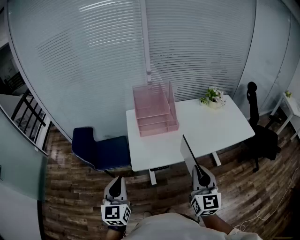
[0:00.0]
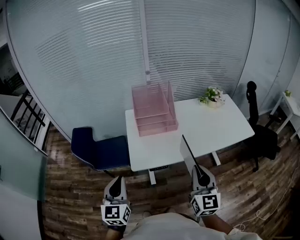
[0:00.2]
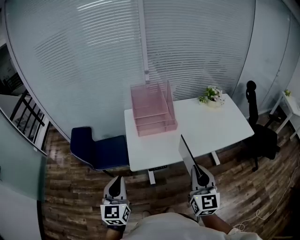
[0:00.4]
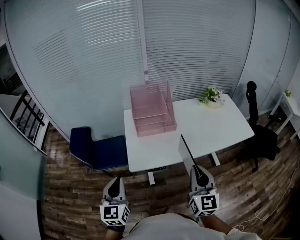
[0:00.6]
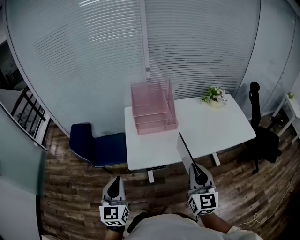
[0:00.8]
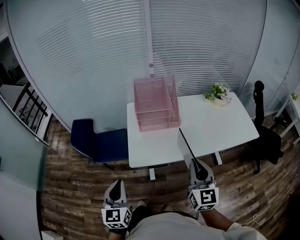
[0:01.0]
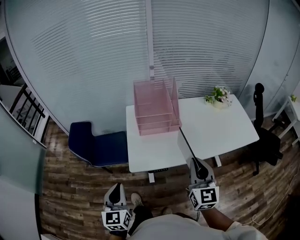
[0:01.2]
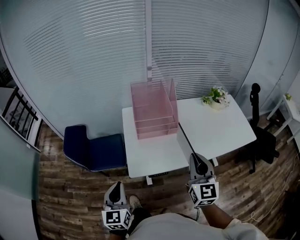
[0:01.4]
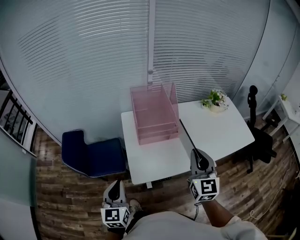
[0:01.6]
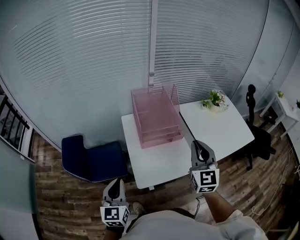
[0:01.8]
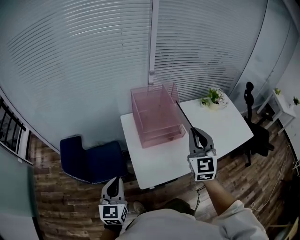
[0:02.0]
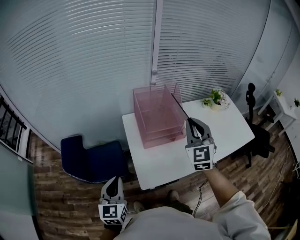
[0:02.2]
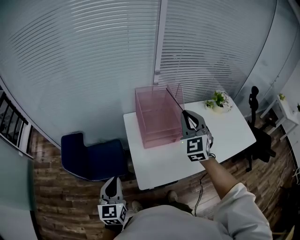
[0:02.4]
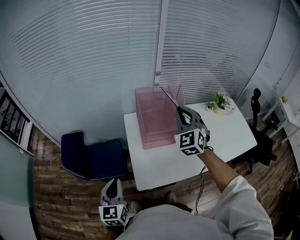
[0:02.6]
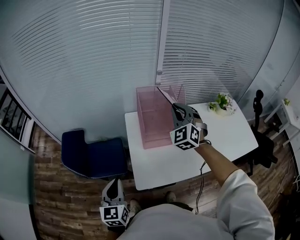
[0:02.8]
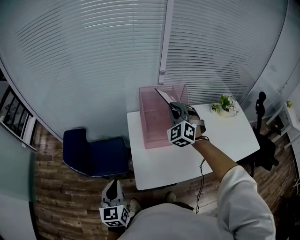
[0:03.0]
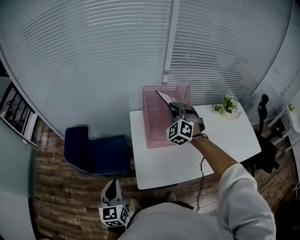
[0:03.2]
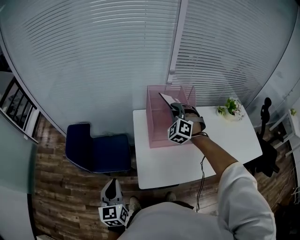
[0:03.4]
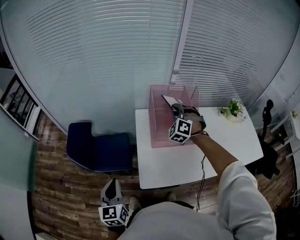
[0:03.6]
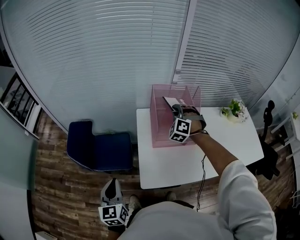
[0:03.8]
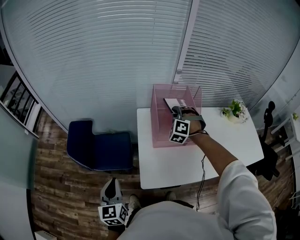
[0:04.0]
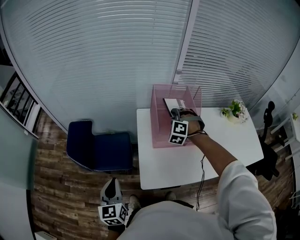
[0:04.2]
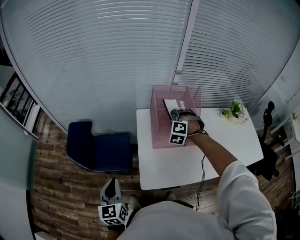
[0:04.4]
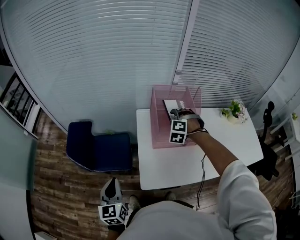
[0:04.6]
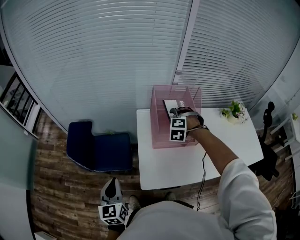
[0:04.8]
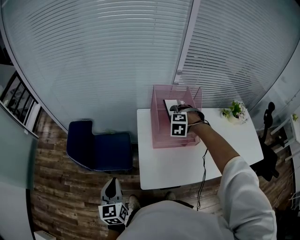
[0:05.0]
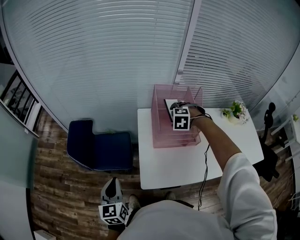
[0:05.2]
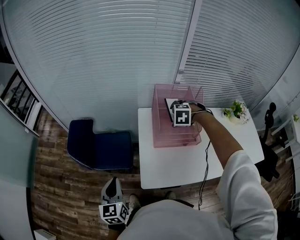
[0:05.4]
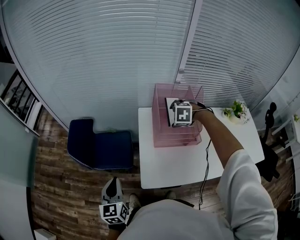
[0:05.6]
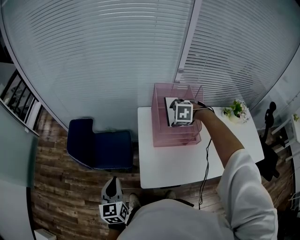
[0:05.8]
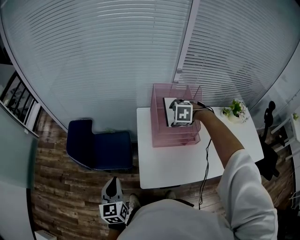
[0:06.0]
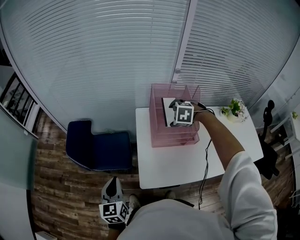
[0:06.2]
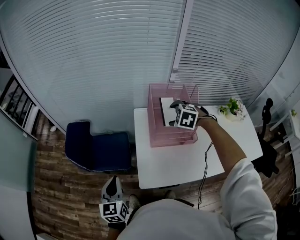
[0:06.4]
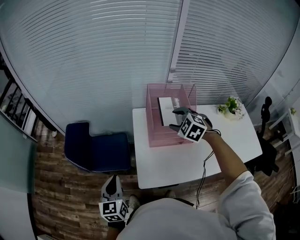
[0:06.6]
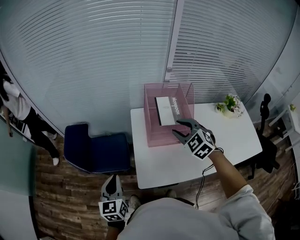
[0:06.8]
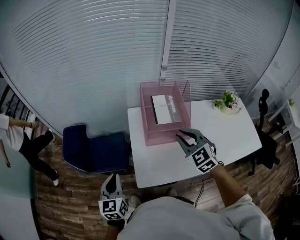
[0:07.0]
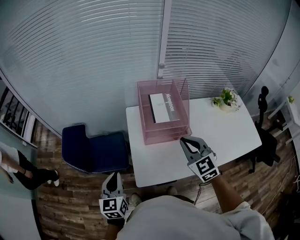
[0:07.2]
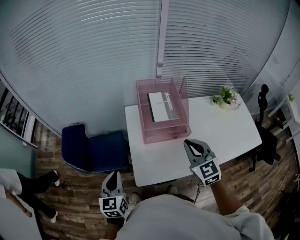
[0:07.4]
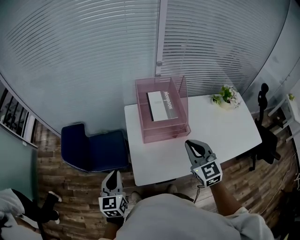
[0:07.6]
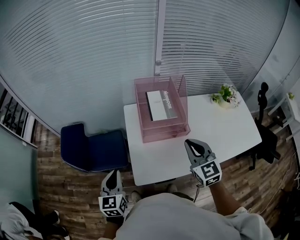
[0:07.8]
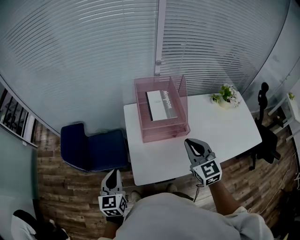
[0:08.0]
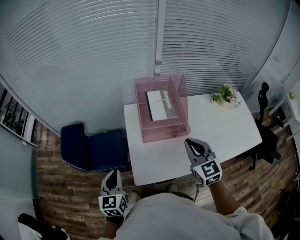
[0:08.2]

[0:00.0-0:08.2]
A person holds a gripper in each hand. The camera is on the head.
0:00.0 to 0:01.6: The left gripper travels forward and downward by roughly 15 cm; the right gripper is displaced forward by about 20 cm.
0:01.6 to 0:03.2: The right gripper goes about 30 cm forward and to the left, and rolls counterclockwise, seen from behind, by some 60 degrees, while the left gripper shifts roughly 5 cm to the left.
0:03.2 to 0:05.0: The right gripper goes roughly 15 cm downward, points its fingers about 40 degrees further downward, and opens.
0:05.0 to 0:06.6: The right gripper is displaced upward by about 10 cm, and rotates about 30 degrees.
0:06.6 to 0:08.2: The right gripper is displaced backward and to the right by about 15 cm, tilts its fingers roughly 30 degrees upward, and closes. Meanwhile the left gripper is displaced to the right by about 5 cm.

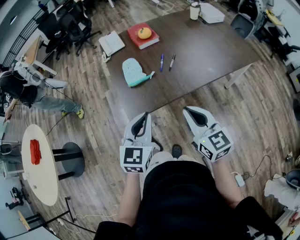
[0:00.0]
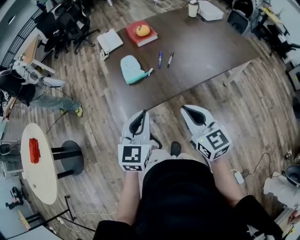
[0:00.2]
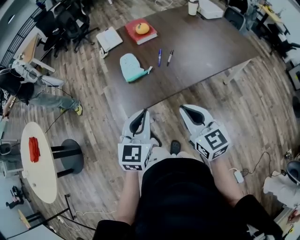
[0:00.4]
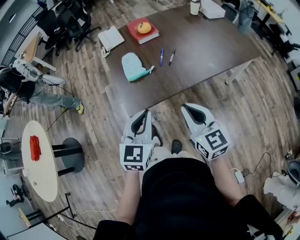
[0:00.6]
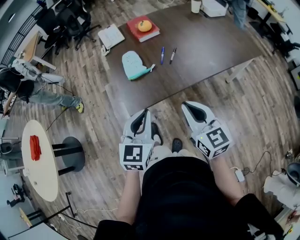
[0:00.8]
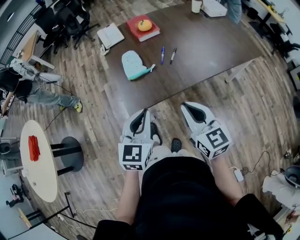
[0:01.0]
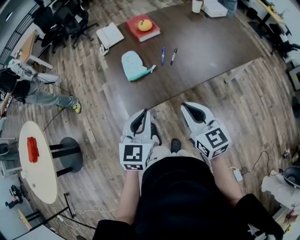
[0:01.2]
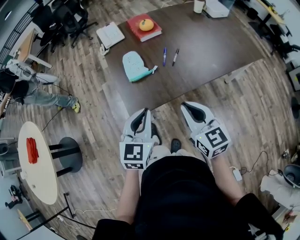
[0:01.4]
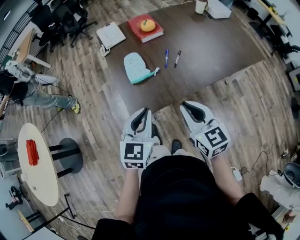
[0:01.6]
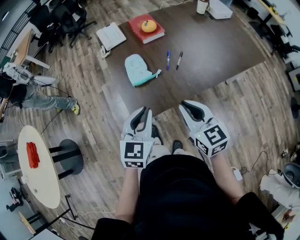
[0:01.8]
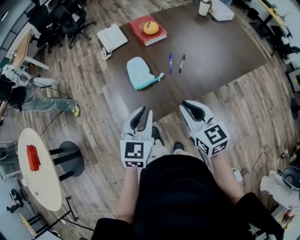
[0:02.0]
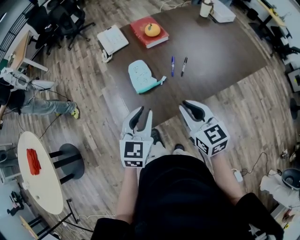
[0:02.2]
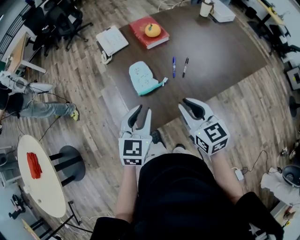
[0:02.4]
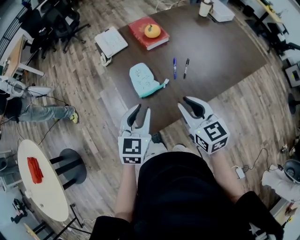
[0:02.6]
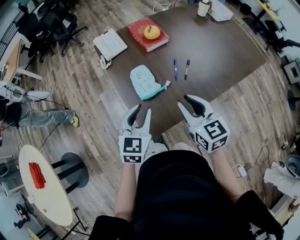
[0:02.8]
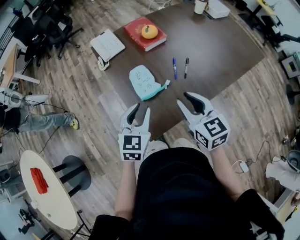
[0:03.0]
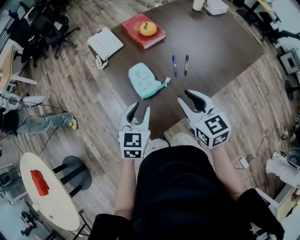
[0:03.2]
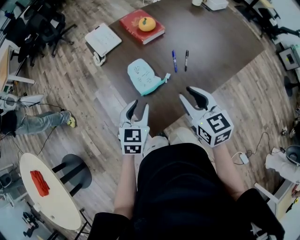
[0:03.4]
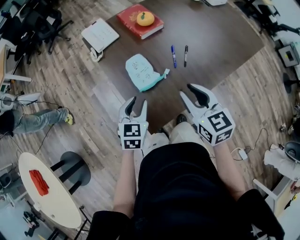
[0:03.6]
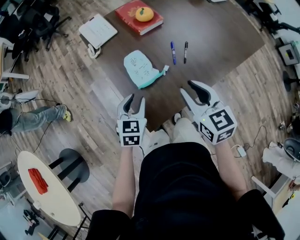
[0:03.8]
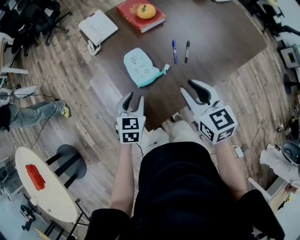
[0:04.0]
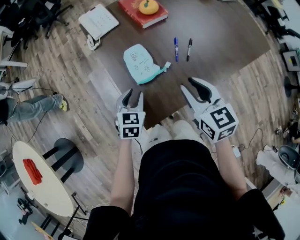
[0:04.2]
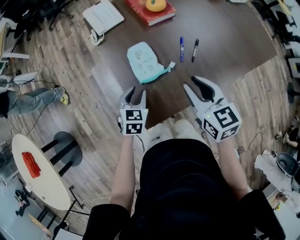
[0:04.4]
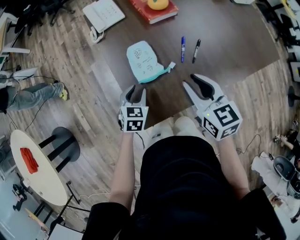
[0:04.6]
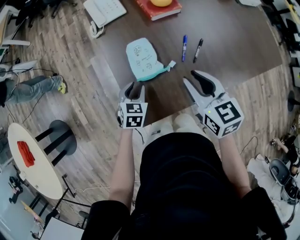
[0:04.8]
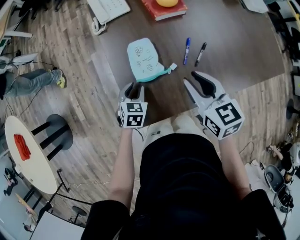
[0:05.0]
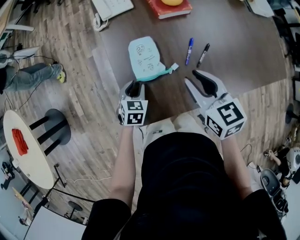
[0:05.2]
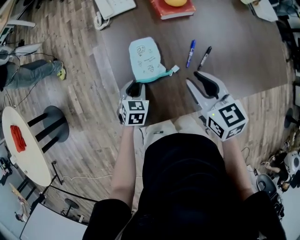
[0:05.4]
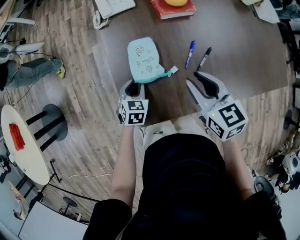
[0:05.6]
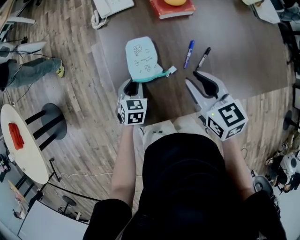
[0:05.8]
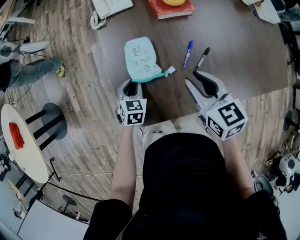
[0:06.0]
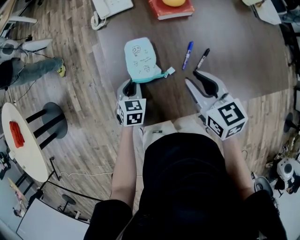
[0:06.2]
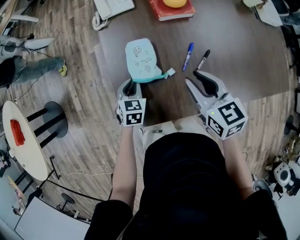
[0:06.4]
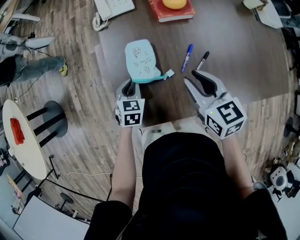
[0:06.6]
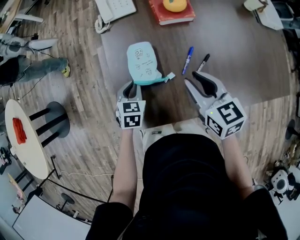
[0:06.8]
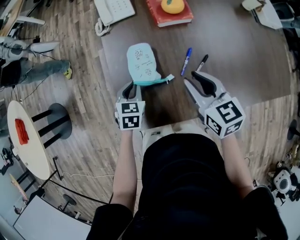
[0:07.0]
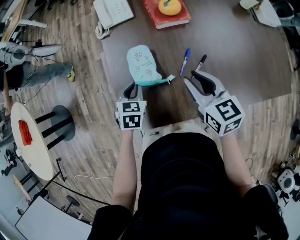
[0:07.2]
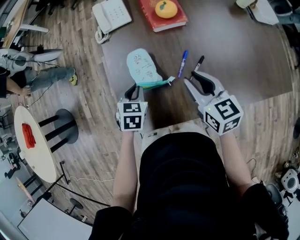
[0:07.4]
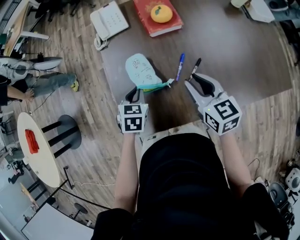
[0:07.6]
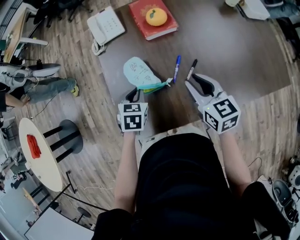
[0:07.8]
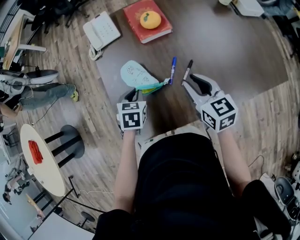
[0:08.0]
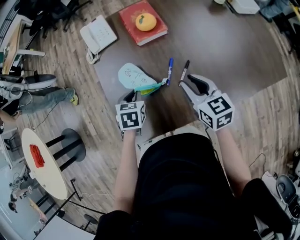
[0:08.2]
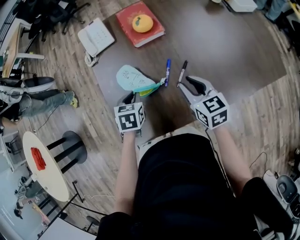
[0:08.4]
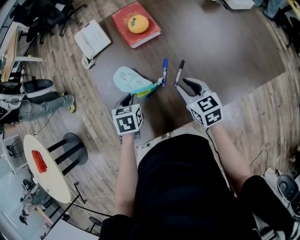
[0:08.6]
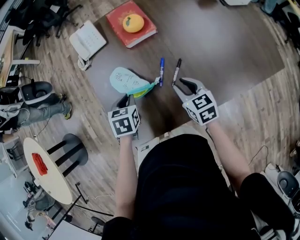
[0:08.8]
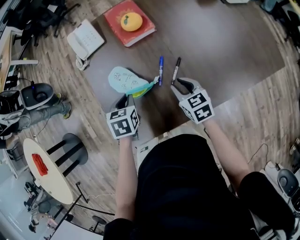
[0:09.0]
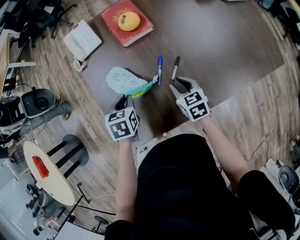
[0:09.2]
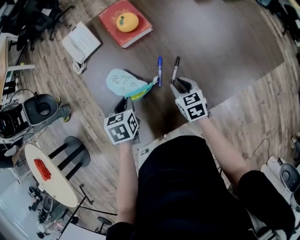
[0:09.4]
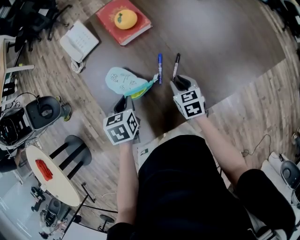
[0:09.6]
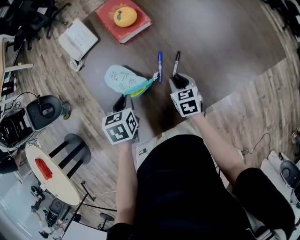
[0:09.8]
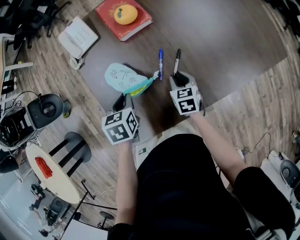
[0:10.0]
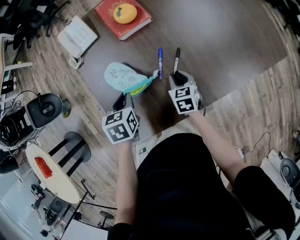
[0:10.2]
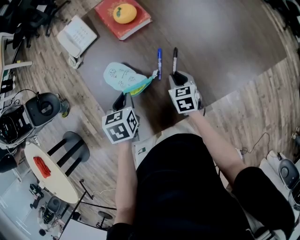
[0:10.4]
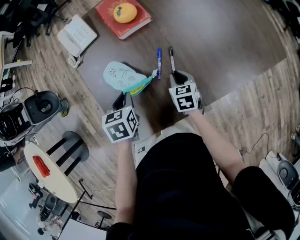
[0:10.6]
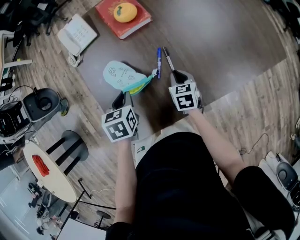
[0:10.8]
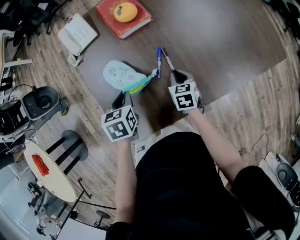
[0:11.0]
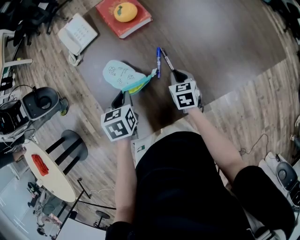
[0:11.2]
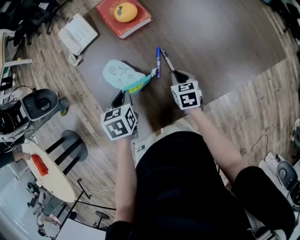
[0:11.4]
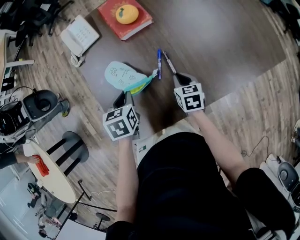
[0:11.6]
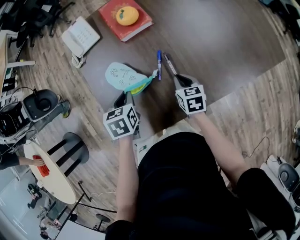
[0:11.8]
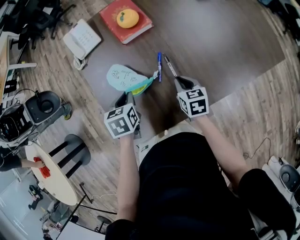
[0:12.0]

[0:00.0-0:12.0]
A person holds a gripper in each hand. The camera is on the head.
0:00.0 to 0:01.6: The two grippers go roughly 5 cm forward.
0:01.6 to 0:03.0: The two grippers go about 15 cm forward and to the left. The left gripper opens up; the right gripper opens up.
0:03.0 to 0:04.4: The left gripper goes approximately 15 cm downward, while the right gripper changes place by roughly 5 cm.
0:04.4 to 0:06.0: The left gripper is displaced downward by about 10 cm, while the right gripper heads forward, covering roughly 5 cm.
0:06.0 to 0:07.6: The left gripper is displaced upward and to the right by roughly 10 cm; the right gripper moves to the right, roughly 5 cm.
0:07.6 to 0:09.0: The right gripper moves downward, some 10 cm.
0:09.0 to 0:10.4: The right gripper is displaced downward by some 10 cm.
0:10.4 to 0:12.0: The grippers stay close to where they were, moving slightly.

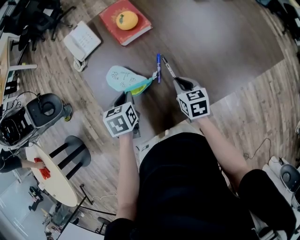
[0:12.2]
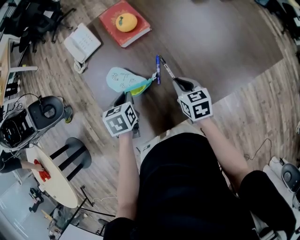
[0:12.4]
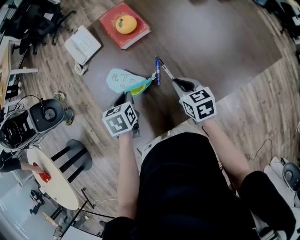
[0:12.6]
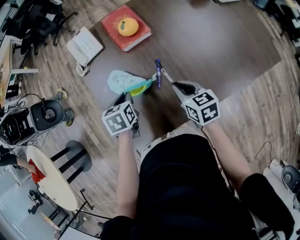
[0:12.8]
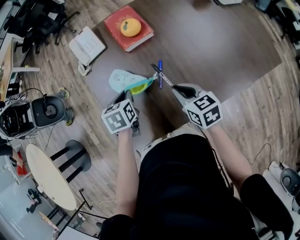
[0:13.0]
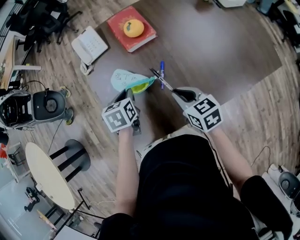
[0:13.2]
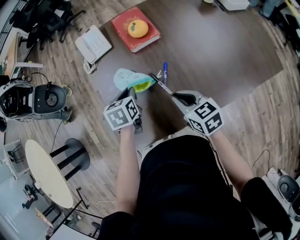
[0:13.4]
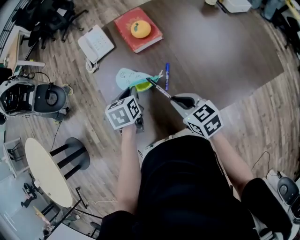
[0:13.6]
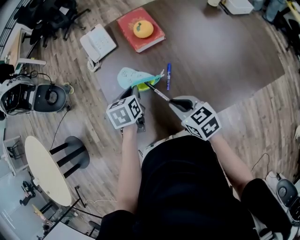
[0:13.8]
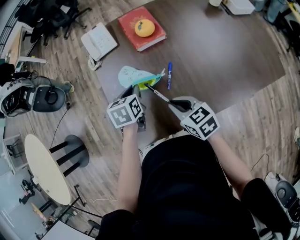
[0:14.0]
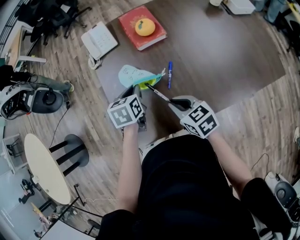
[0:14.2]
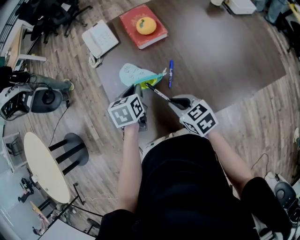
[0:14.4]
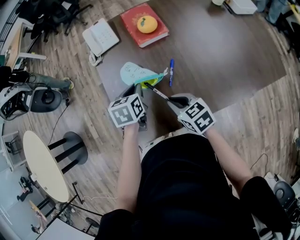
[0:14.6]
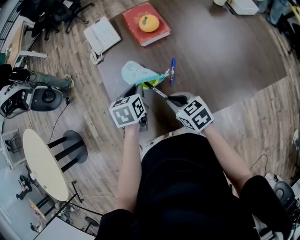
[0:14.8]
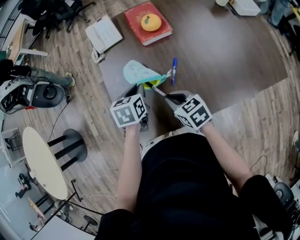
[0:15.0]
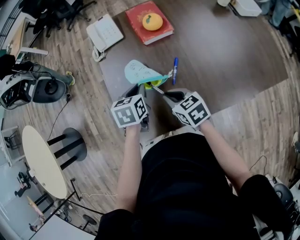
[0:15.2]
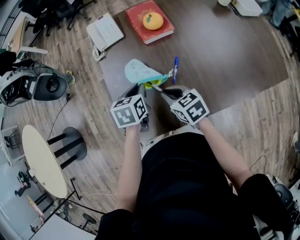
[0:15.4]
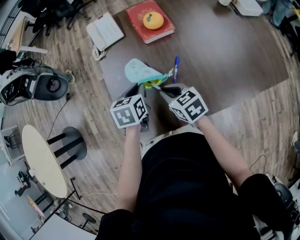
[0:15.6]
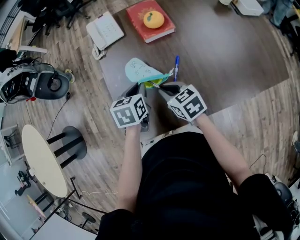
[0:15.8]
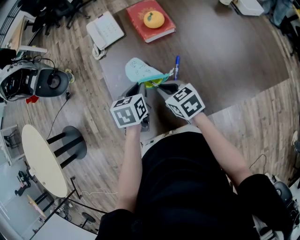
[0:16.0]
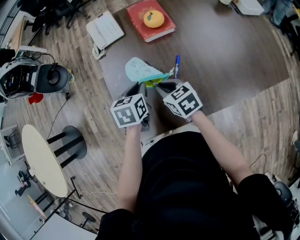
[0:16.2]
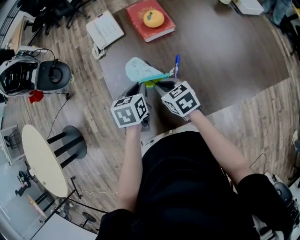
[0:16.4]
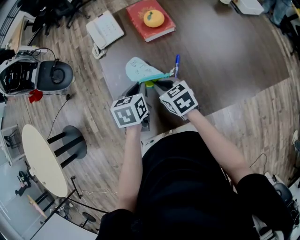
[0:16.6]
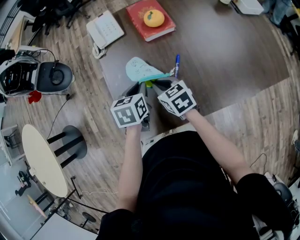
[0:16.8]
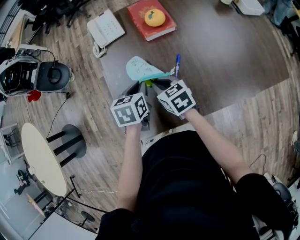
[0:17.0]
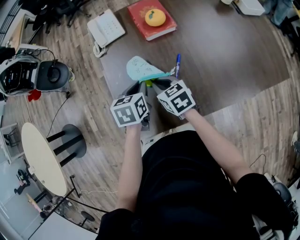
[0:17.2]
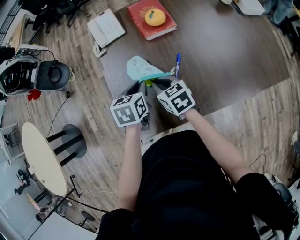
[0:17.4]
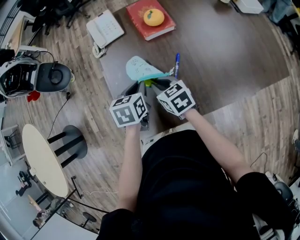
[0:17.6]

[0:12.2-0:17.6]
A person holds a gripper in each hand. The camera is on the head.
0:12.2 to 0:13.6: The right gripper is displaced upward and to the left by about 10 cm, and rotates about 30 degrees.
0:13.6 to 0:15.0: The right gripper travels to the left by about 5 cm.
0:15.0 to 0:16.2: The right gripper heads forward, covering about 5 cm.
0:16.2 to 0:17.6: There are only small adjustments of the grippers.
